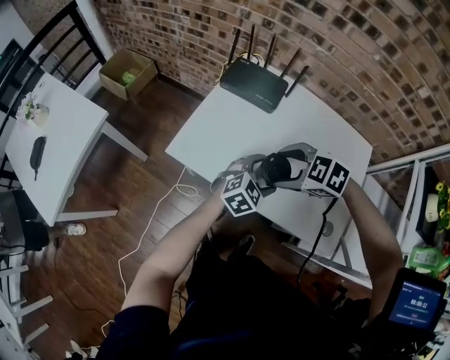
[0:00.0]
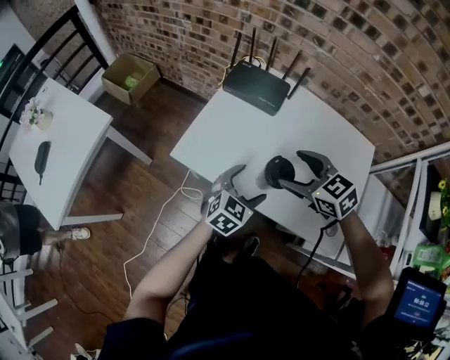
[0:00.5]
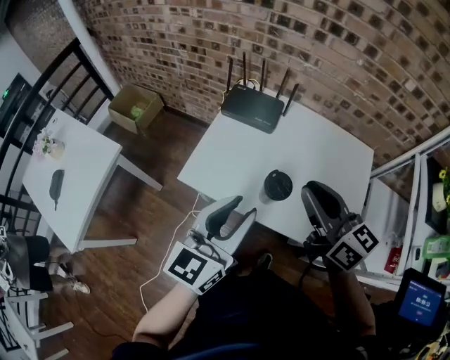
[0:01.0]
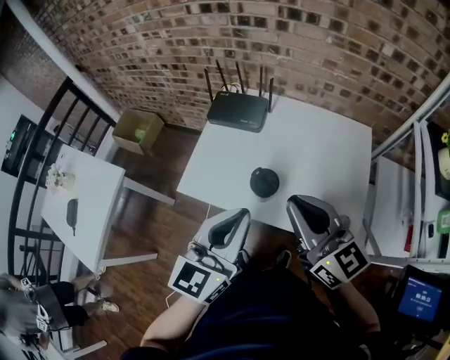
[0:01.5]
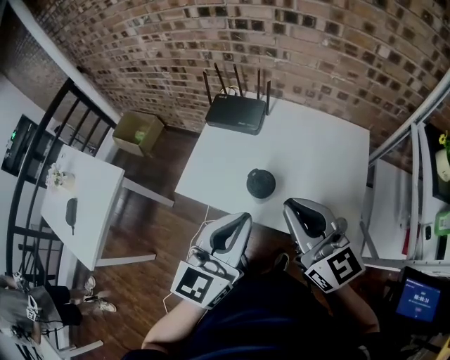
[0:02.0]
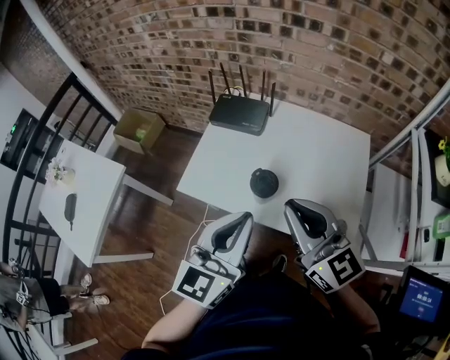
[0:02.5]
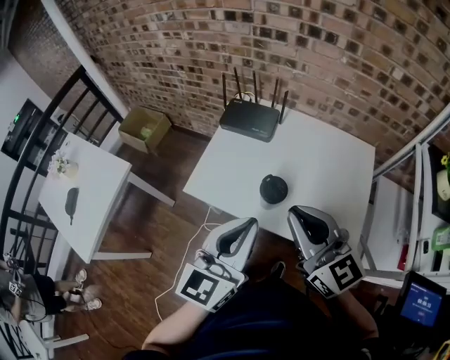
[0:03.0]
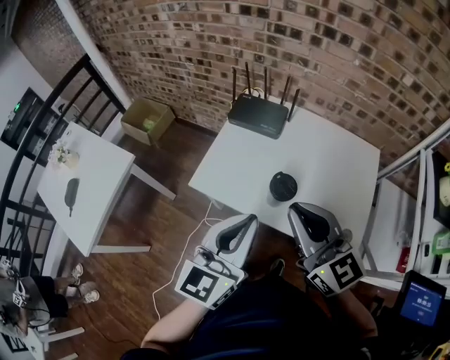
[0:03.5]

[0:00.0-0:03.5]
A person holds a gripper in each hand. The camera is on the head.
0:00.0 to 0:02.0: The grippers both shift upward by about 25 cm. The right gripper tips its fingers upward by roughly 60 degrees, and closes up. The left gripper angles its fingers upward, by some 30 degrees, and closes up.
0:02.0 to 0:03.5: Both grippers travel together to the left, about 5 cm.
